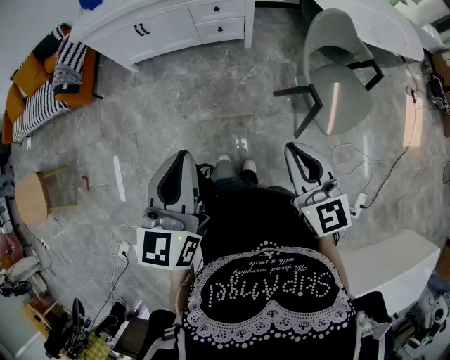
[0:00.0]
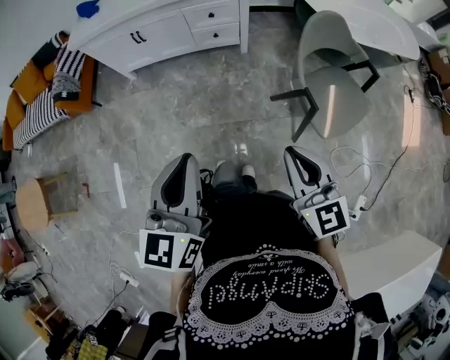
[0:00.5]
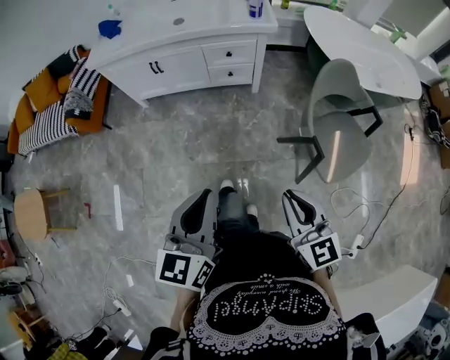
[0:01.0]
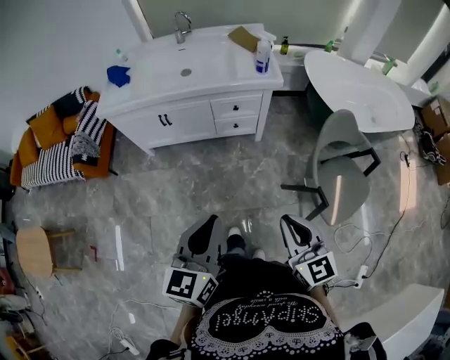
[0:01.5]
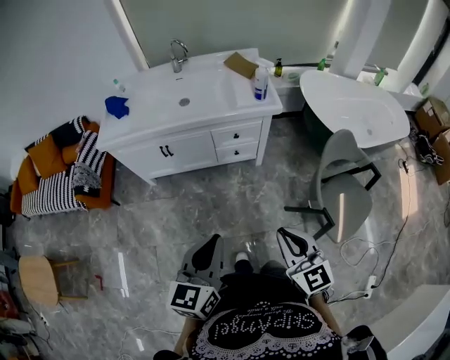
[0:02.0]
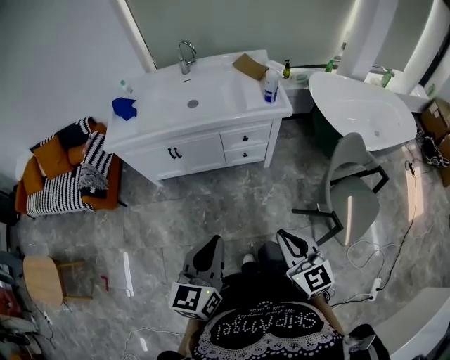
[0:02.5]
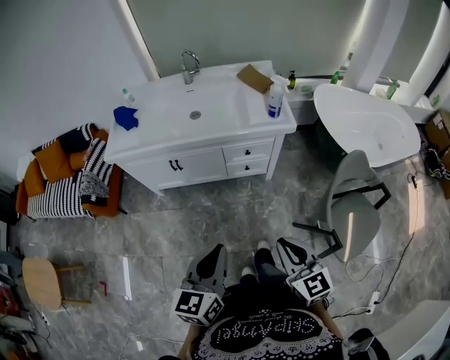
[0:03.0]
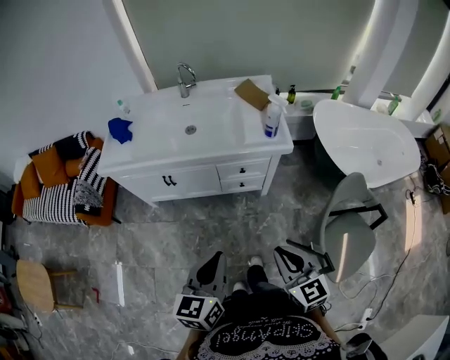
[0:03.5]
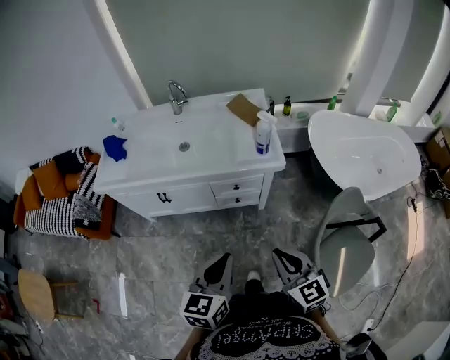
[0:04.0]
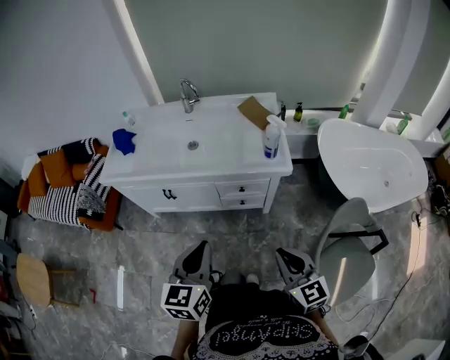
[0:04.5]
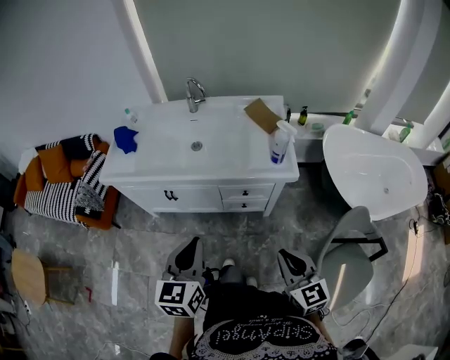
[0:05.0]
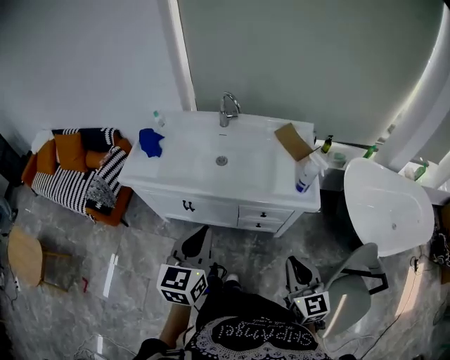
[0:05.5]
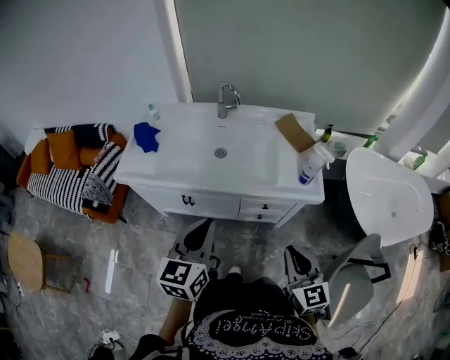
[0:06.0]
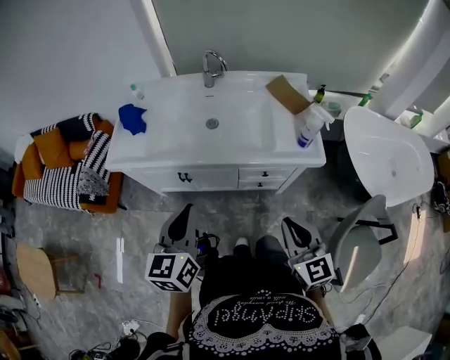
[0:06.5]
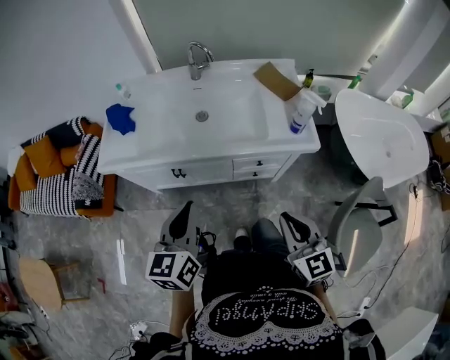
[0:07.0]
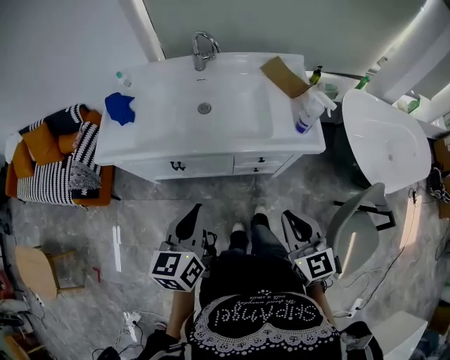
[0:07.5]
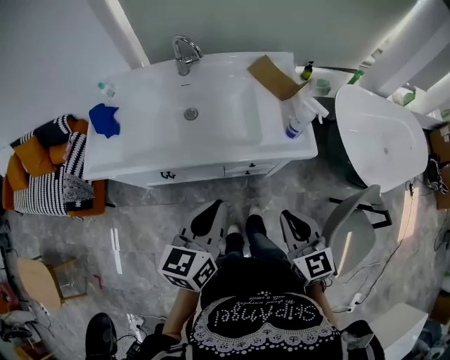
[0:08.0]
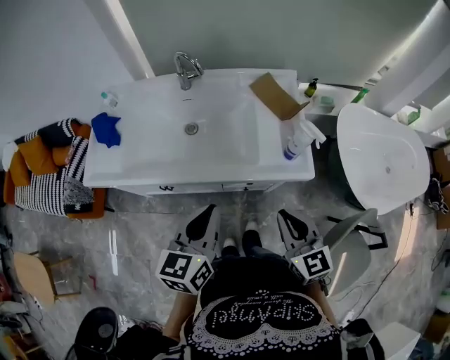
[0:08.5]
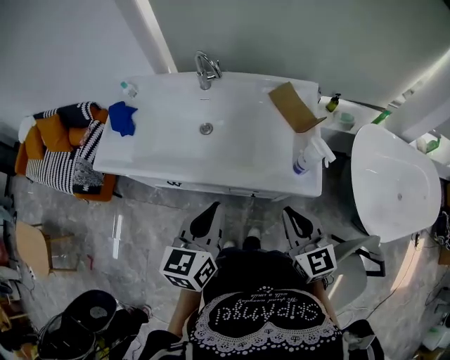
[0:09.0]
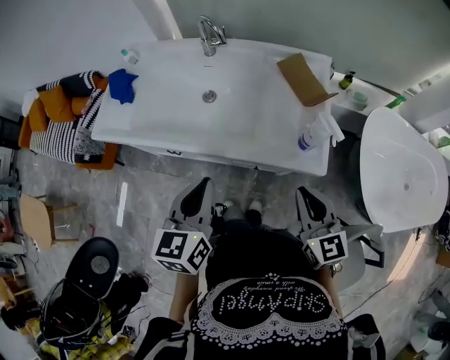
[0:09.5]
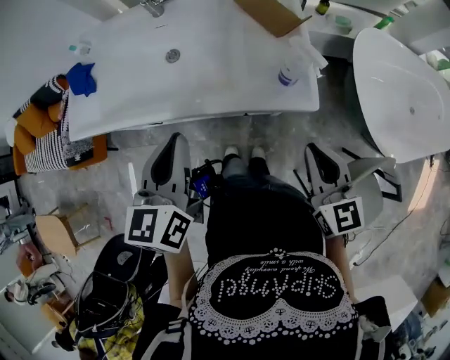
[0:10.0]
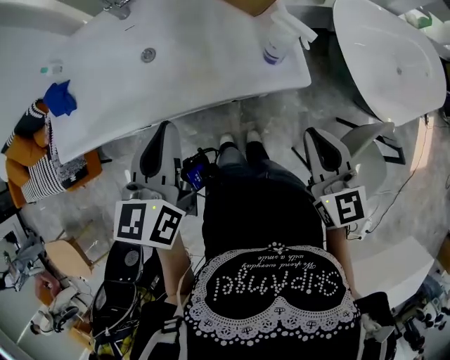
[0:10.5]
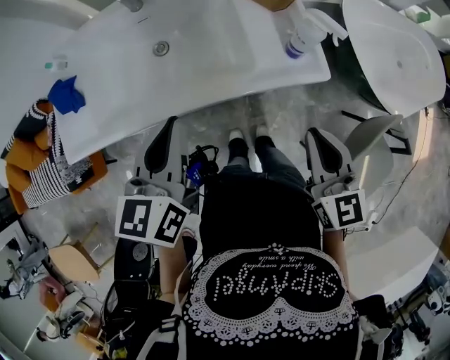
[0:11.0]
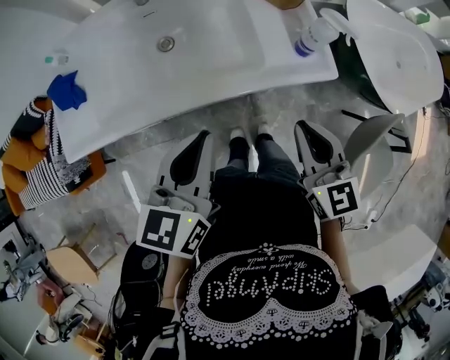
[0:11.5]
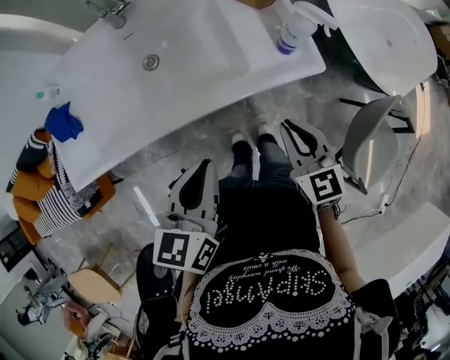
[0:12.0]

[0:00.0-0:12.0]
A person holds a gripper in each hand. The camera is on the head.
0:00.0 to 0:02.0: The left gripper heads forward, covering roughly 20 cm; the right gripper moves forward and to the left, some 20 cm.
0:02.0 to 0:04.0: The left gripper shifts roughly 20 cm forward and to the right. Meanwhile the right gripper heads forward, covering approximately 20 cm.
0:04.0 to 0:06.0: The left gripper goes some 25 cm forward and to the left; the right gripper heads forward and to the left, covering about 15 cm.
0:06.0 to 0:08.0: The right gripper changes place by roughly 5 cm; the left gripper travels to the right by approximately 5 cm.
0:08.0 to 0:10.0: The right gripper goes about 15 cm to the right and forward. The left gripper is displaced forward by roughly 10 cm.
0:10.0 to 0:12.0: The right gripper goes approximately 15 cm to the left and downward. The left gripper goes about 5 cm downward, and rotates approximately 30 degrees.

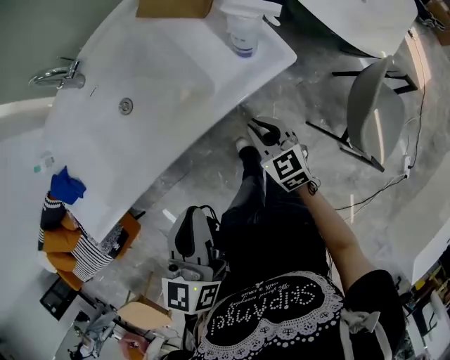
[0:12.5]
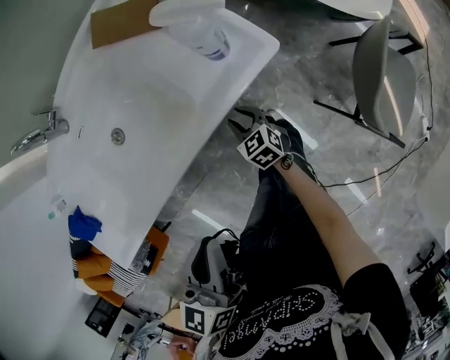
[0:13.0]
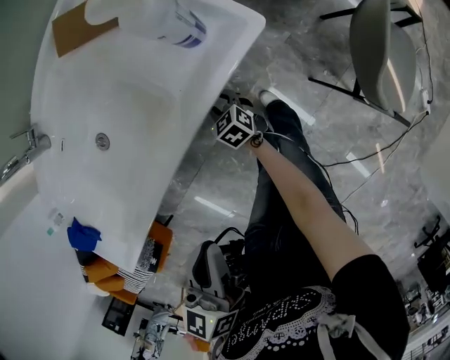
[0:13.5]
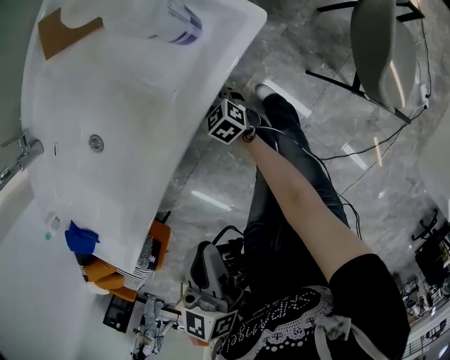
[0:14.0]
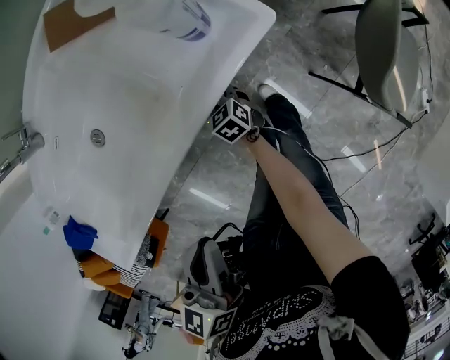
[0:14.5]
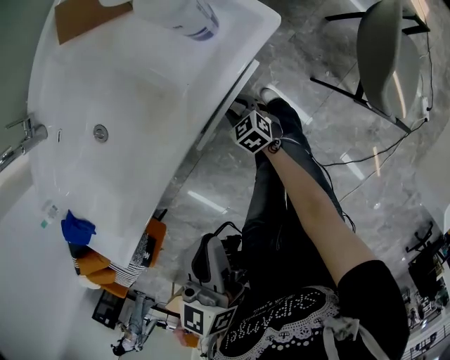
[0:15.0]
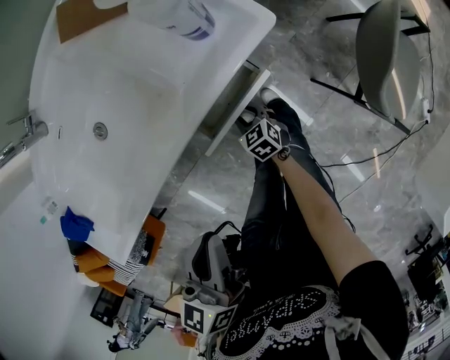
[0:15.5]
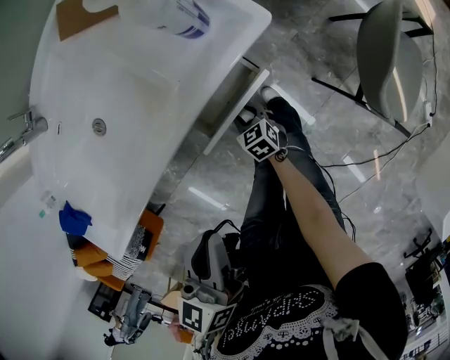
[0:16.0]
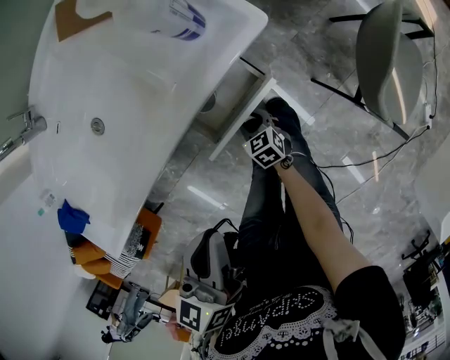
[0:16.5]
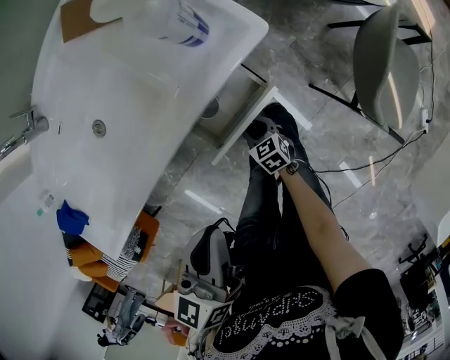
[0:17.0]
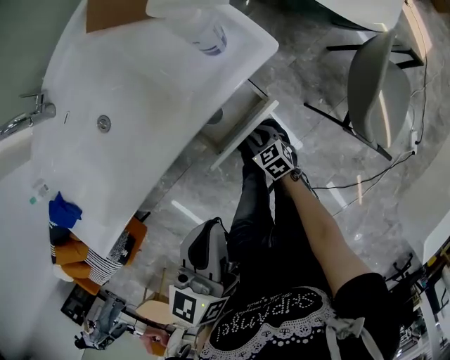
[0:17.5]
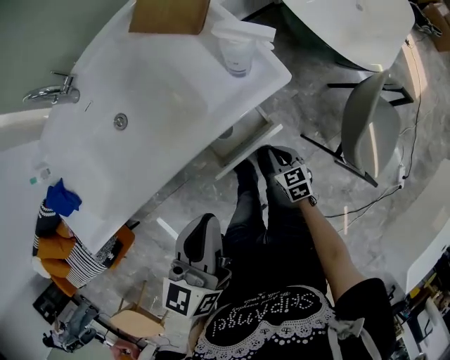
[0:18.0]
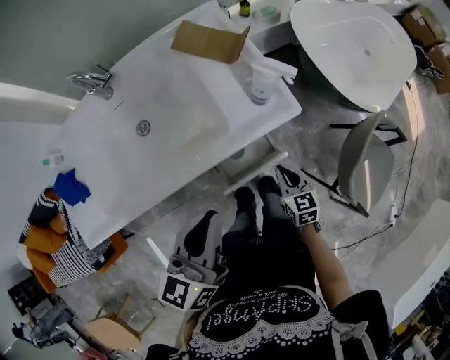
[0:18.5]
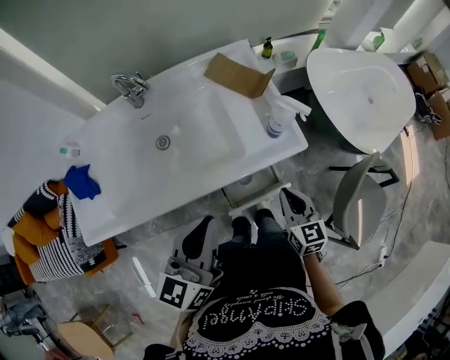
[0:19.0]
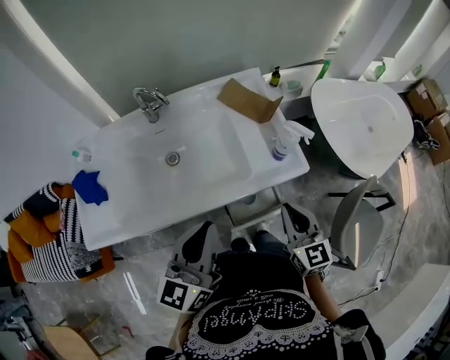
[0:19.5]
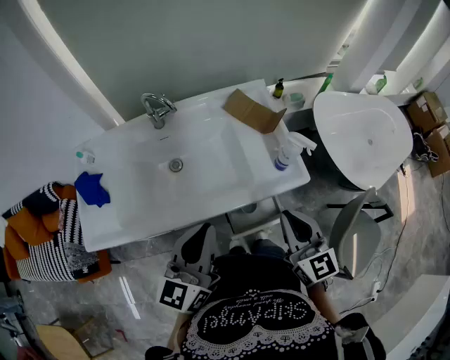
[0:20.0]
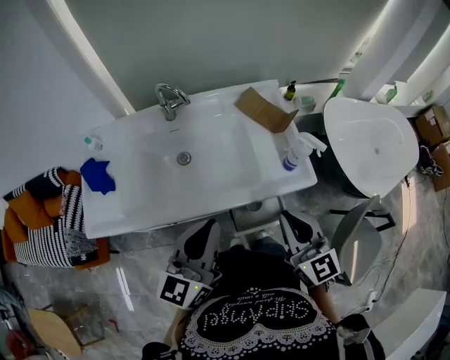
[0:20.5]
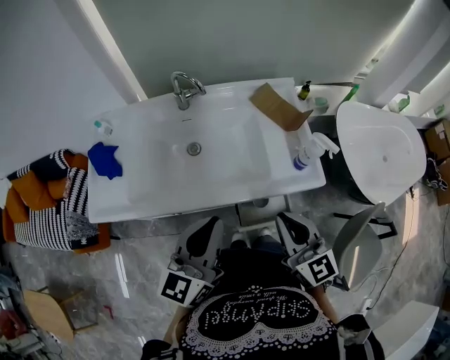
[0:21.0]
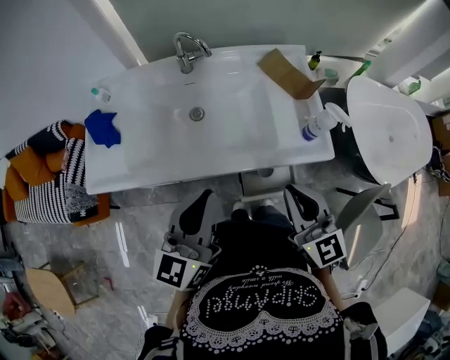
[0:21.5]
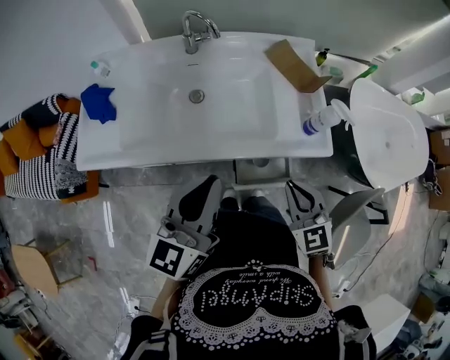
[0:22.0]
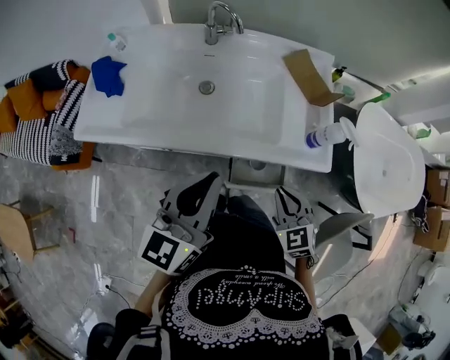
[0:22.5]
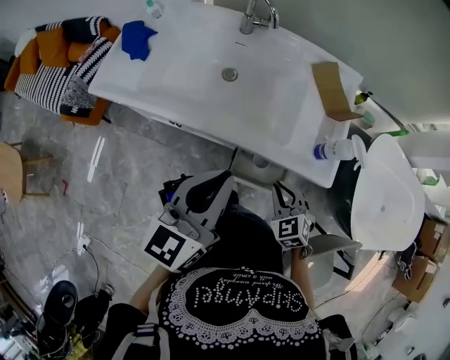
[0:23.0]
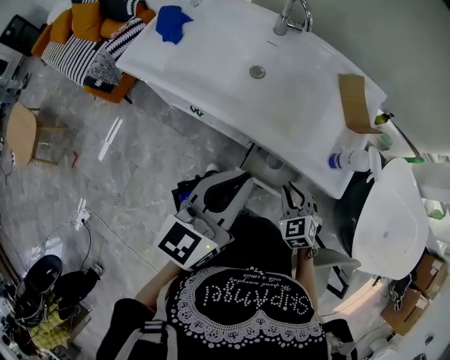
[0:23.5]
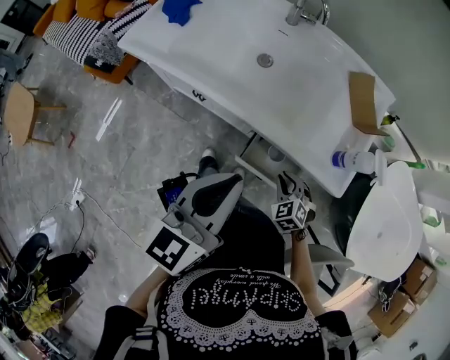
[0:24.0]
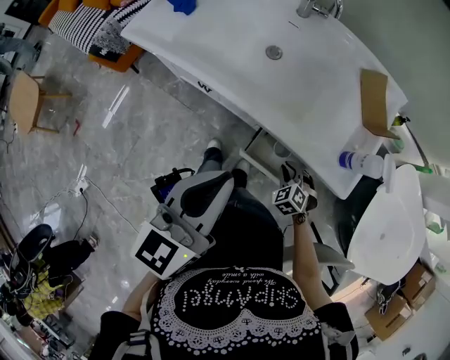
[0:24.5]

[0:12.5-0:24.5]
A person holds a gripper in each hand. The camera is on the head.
0:12.5 to 0:14.5: The left gripper shifts about 5 cm downward. Meanwhile the right gripper travels downward by roughly 25 cm, swivels about 20 degrees, and opens up.
0:14.5 to 0:16.5: The left gripper moves about 5 cm, while the right gripper goes approximately 15 cm backward and to the right.
0:16.5 to 0:18.5: The left gripper heads upward, covering about 10 cm. The right gripper travels upward by approximately 20 cm, and closes its fingers.
0:18.5 to 0:20.5: The right gripper travels upward by roughly 30 cm, and points its fingers roughly 30 degrees further upward. Meanwhile the left gripper is displaced to the left and upward by about 10 cm, and turns by roughly 20 degrees.
0:20.5 to 0:22.5: The right gripper travels downward by some 15 cm, and points its fingers roughly 30 degrees further downward.
0:22.5 to 0:24.5: The right gripper heads downward, covering some 25 cm, and rotates roughly 40 degrees. Meanwhile the left gripper moves backward, roughly 5 cm, and turns by about 20 degrees.

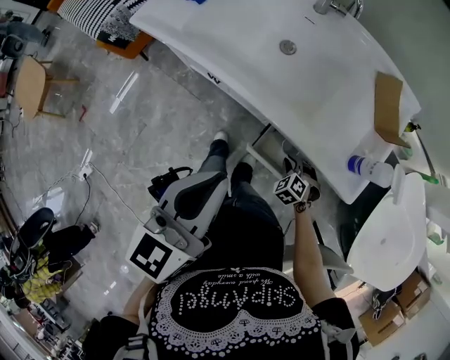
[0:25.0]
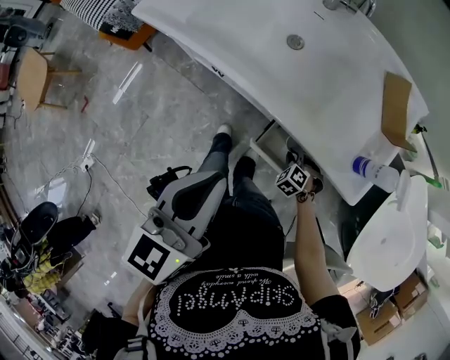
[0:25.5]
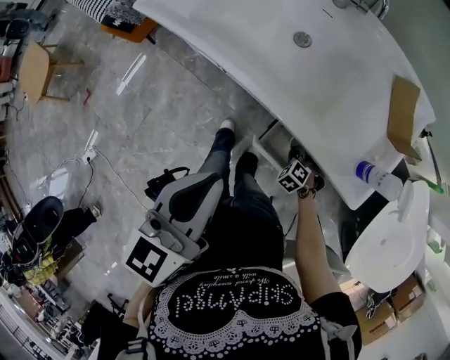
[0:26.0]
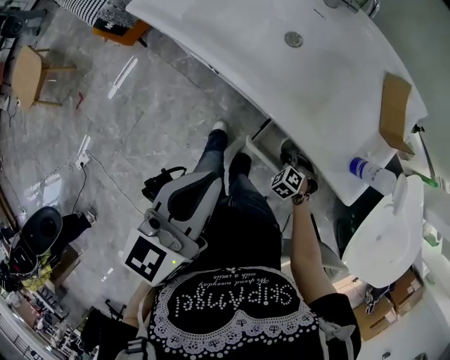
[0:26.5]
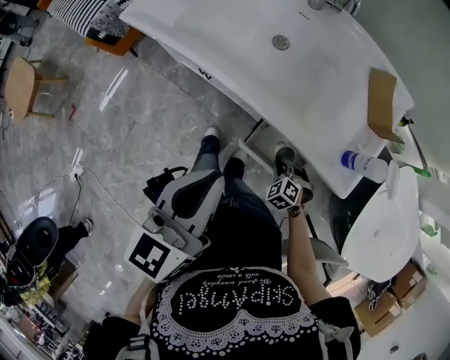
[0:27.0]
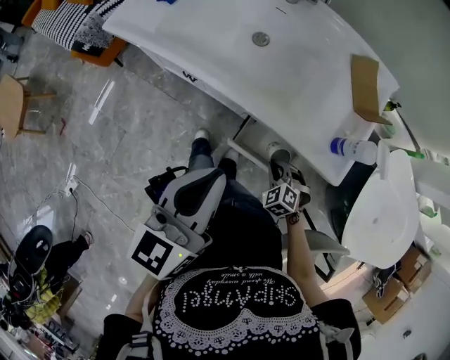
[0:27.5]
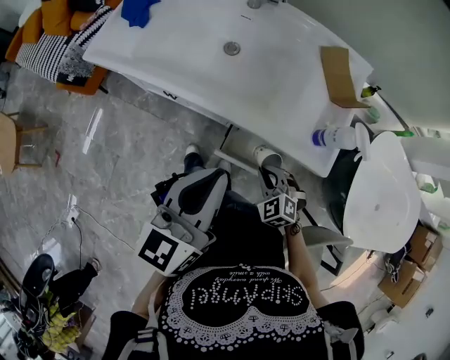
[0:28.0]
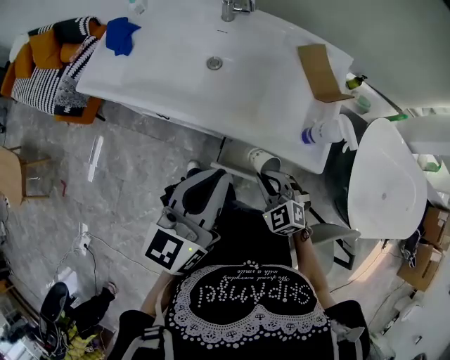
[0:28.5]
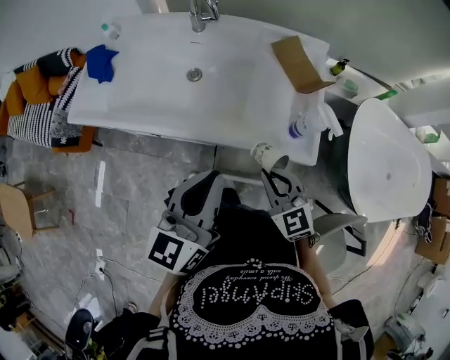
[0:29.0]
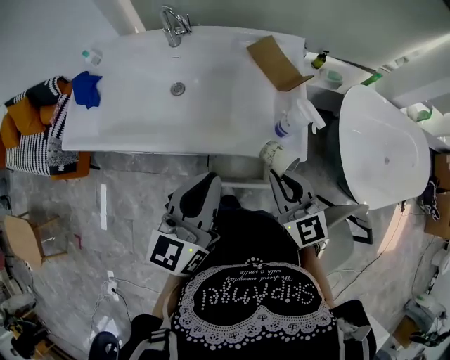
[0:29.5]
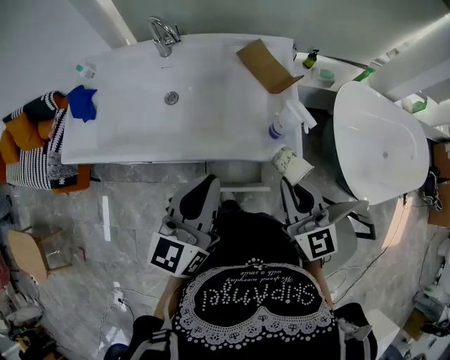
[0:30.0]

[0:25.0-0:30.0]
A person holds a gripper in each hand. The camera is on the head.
0:25.0 to 0:27.5: The right gripper goes roughly 5 cm upward.
0:27.5 to 0:30.0: The right gripper heads upward, covering approximately 35 cm, and tips its fingers upward by about 50 degrees. Meanwhile the left gripper travels to the right and forward by roughly 10 cm, and rotates about 30 degrees.
